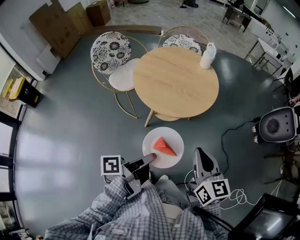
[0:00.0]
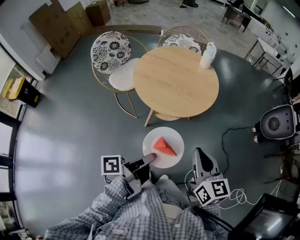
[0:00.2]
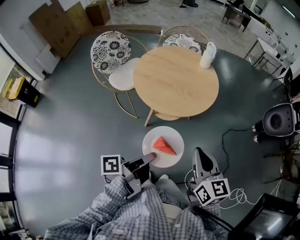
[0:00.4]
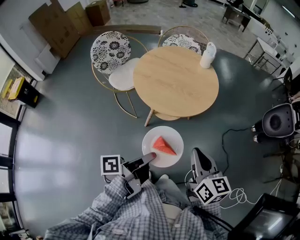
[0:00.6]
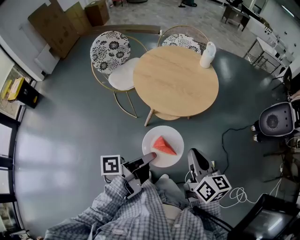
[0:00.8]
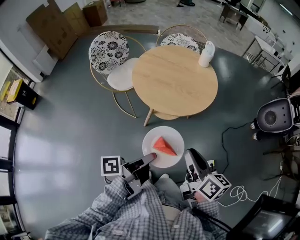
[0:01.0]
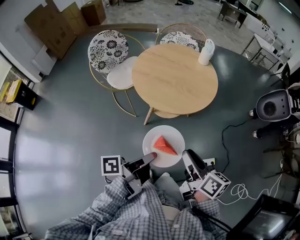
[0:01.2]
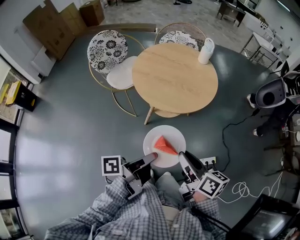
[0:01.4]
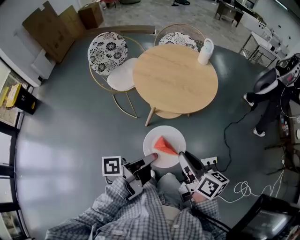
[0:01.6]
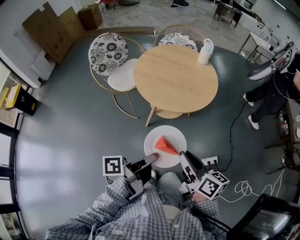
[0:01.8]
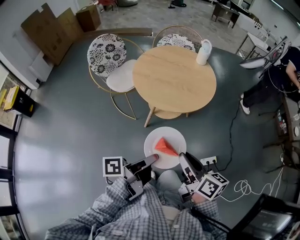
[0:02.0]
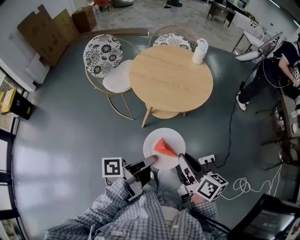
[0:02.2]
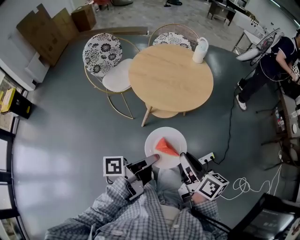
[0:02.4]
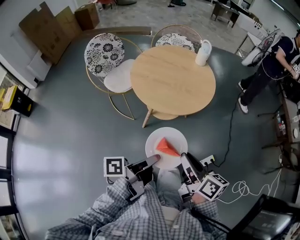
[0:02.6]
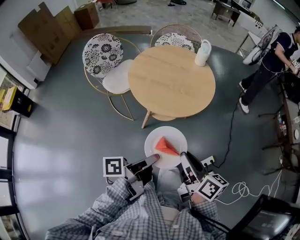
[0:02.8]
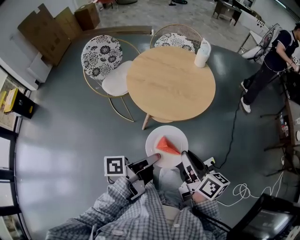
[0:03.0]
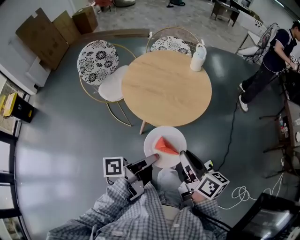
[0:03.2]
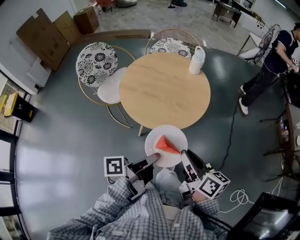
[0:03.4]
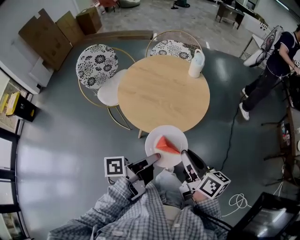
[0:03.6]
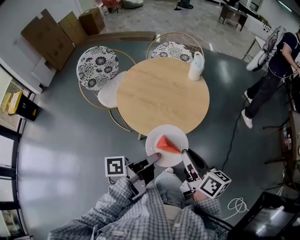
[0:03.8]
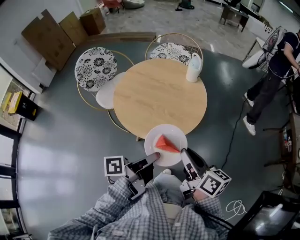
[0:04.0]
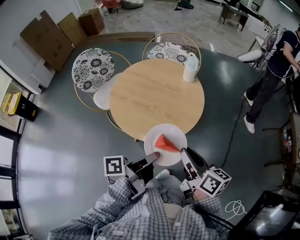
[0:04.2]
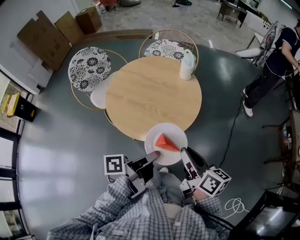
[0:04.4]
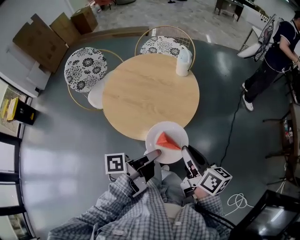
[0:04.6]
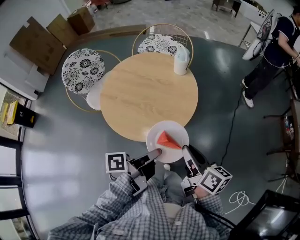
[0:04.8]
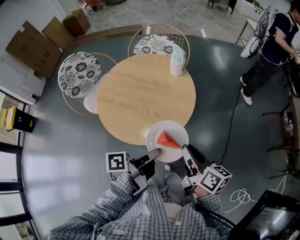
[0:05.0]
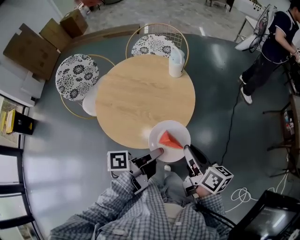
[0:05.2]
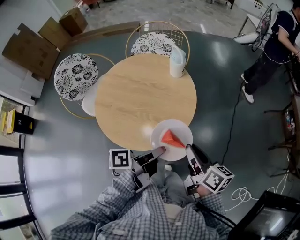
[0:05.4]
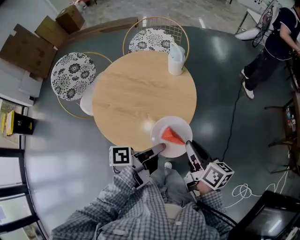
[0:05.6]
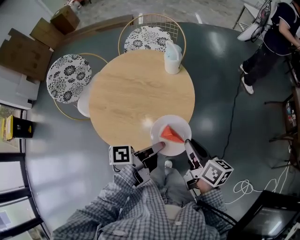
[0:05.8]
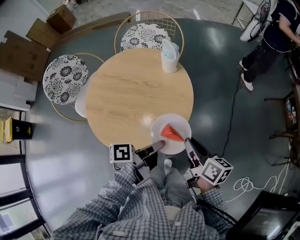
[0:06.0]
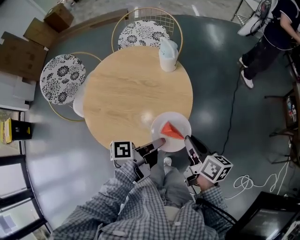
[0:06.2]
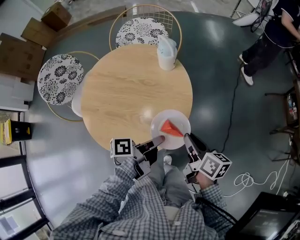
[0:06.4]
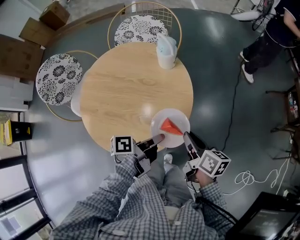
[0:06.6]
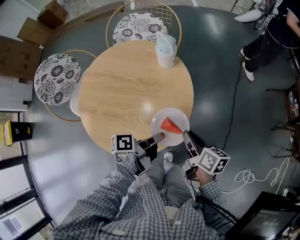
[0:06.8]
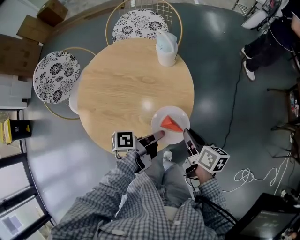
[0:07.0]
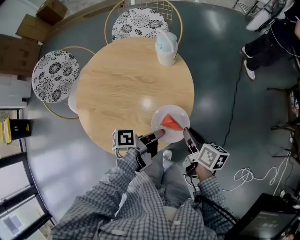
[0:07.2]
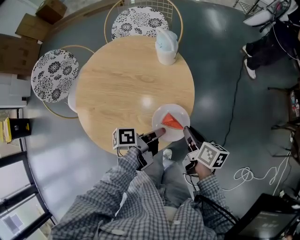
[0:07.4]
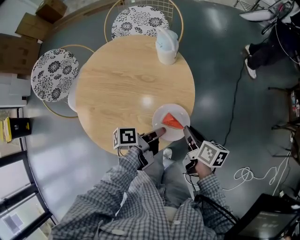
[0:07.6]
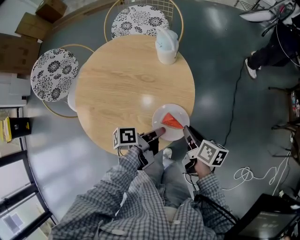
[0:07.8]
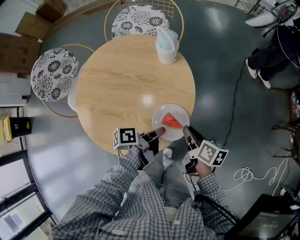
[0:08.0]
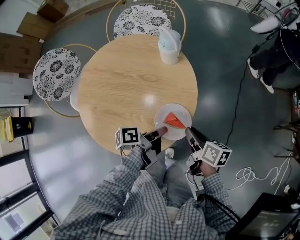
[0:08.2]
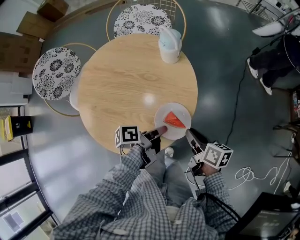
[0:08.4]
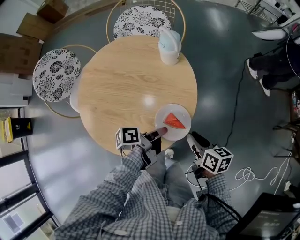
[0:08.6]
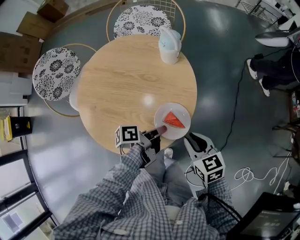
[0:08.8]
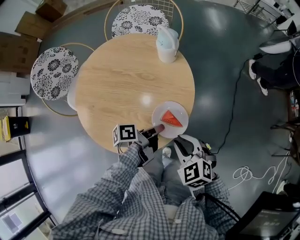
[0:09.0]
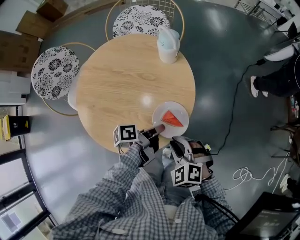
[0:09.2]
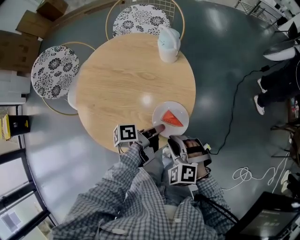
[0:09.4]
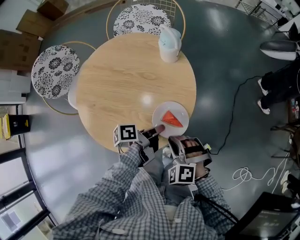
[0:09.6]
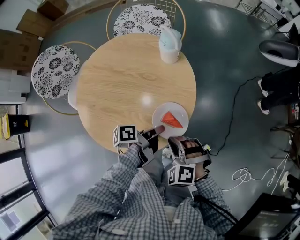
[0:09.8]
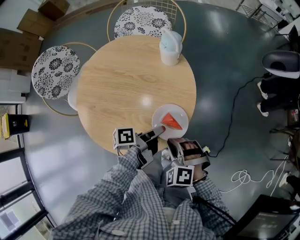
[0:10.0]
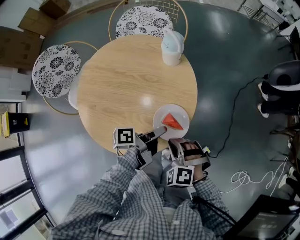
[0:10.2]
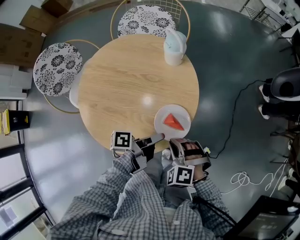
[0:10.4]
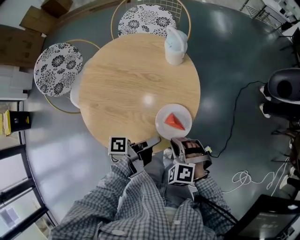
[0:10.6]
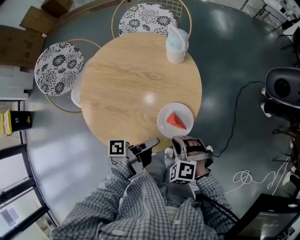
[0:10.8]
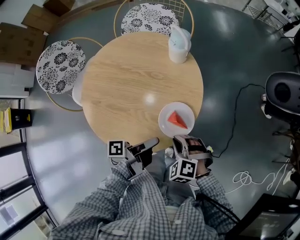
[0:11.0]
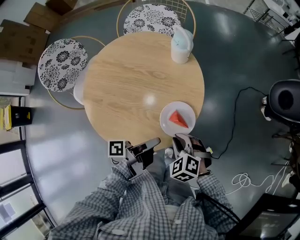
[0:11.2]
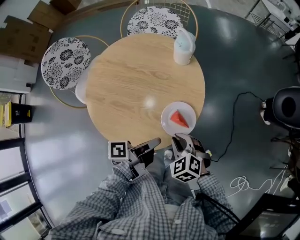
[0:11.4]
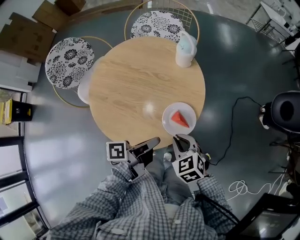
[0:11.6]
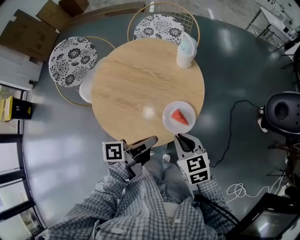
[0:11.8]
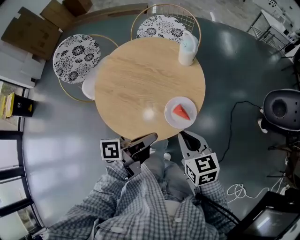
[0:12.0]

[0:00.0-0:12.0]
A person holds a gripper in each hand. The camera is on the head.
0:00.0 to 0:01.6: The right gripper ends up some 10 cm from where it was, and rotates about 40 degrees.
0:01.6 to 0:03.0: The right gripper shifts by about 5 cm.
0:03.0 to 0:04.4: The right gripper ends up some 20 cm from where it was.
0:04.4 to 0:06.0: The right gripper ends up about 15 cm from where it was.
0:06.0 to 0:07.6: The right gripper moves downward, some 10 cm.
0:07.6 to 0:09.0: The right gripper ends up roughly 10 cm from where it was, and rotates around the line of its fingers by about 80 degrees, counterclockwise from behind.
0:09.0 to 0:10.4: The right gripper swivels approximately 30 degrees.
0:10.4 to 0:12.0: The right gripper is displaced upward by approximately 10 cm, and rotates around the line of its fingers by some 60 degrees, clockwise from behind.

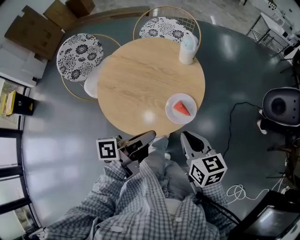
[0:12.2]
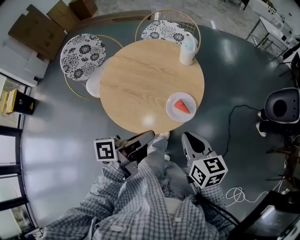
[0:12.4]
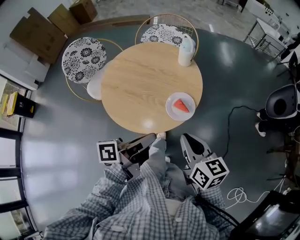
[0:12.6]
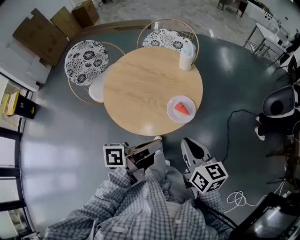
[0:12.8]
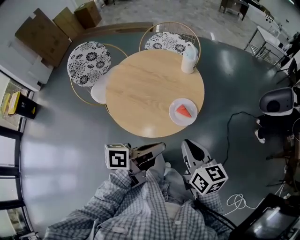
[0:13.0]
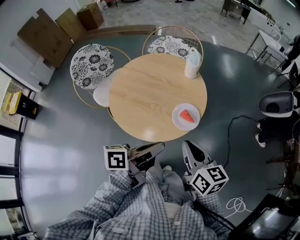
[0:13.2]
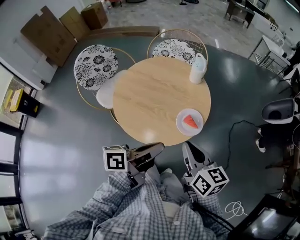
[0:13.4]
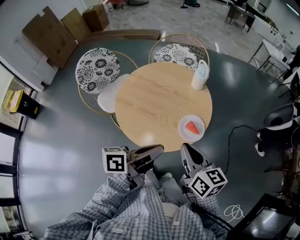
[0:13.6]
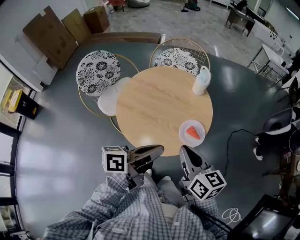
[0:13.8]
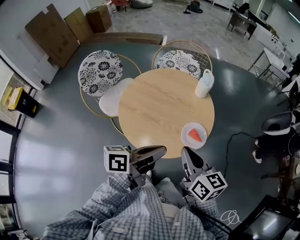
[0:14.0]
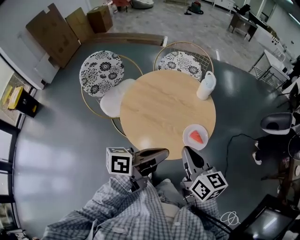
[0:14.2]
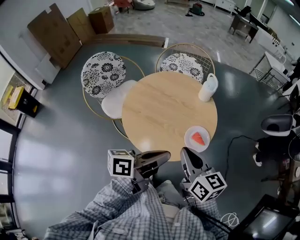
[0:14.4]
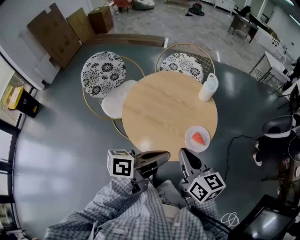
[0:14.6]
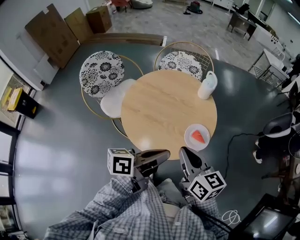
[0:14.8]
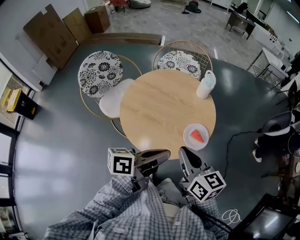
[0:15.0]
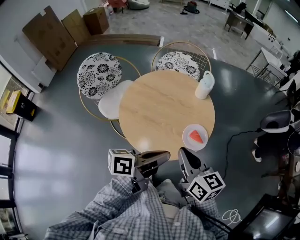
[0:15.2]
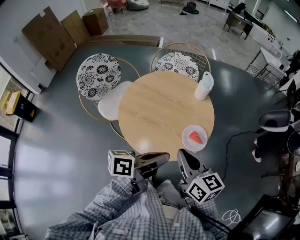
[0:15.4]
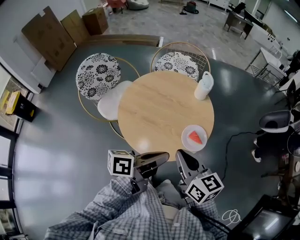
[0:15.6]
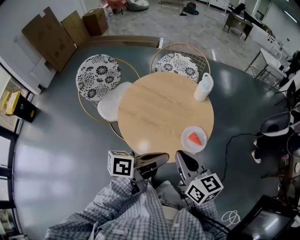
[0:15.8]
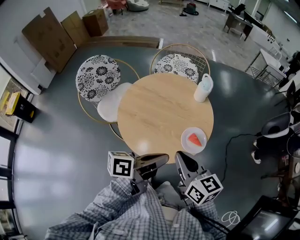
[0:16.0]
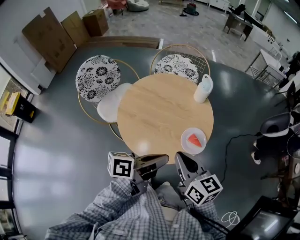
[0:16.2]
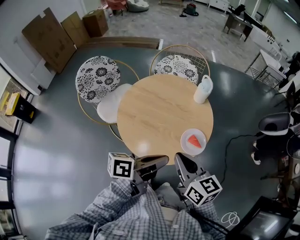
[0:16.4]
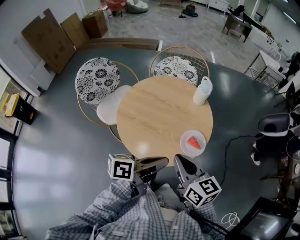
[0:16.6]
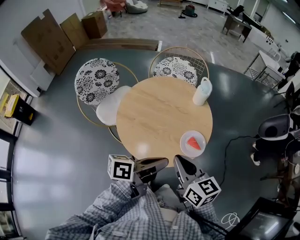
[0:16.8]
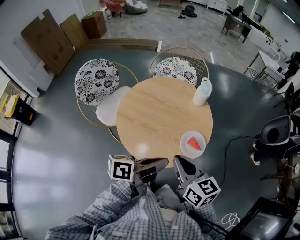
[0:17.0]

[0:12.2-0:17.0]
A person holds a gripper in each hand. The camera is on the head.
0:12.2 to 0:13.8: The right gripper shifts approximately 10 cm upward.

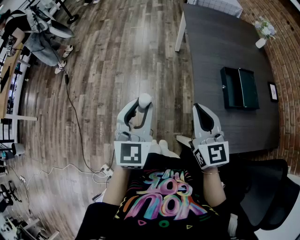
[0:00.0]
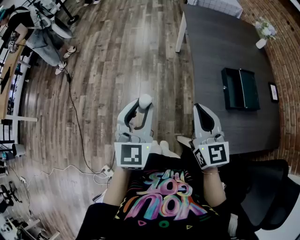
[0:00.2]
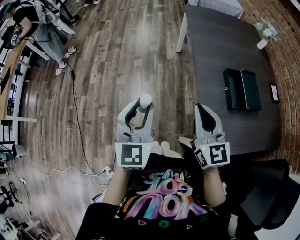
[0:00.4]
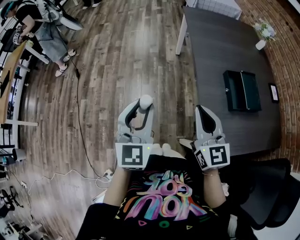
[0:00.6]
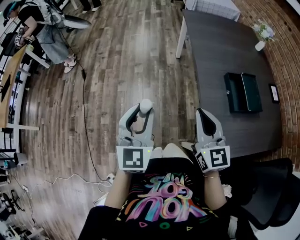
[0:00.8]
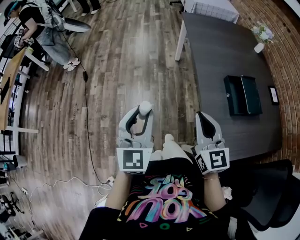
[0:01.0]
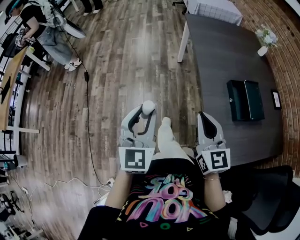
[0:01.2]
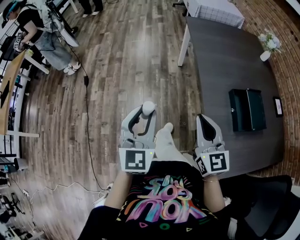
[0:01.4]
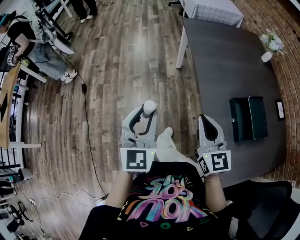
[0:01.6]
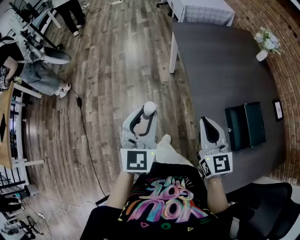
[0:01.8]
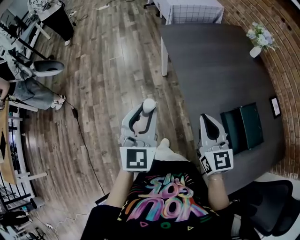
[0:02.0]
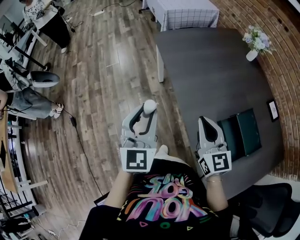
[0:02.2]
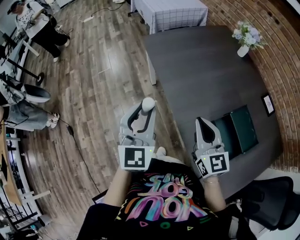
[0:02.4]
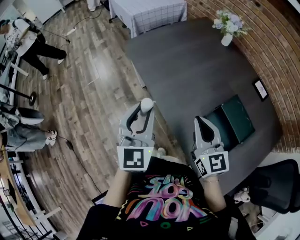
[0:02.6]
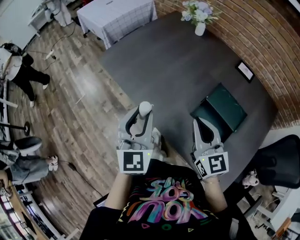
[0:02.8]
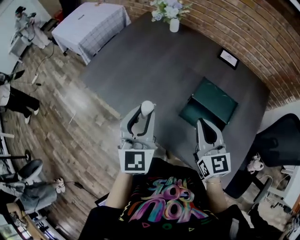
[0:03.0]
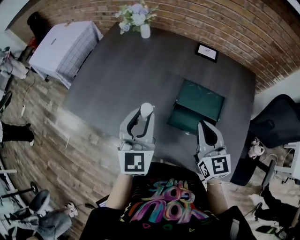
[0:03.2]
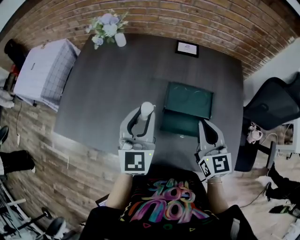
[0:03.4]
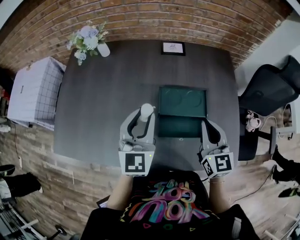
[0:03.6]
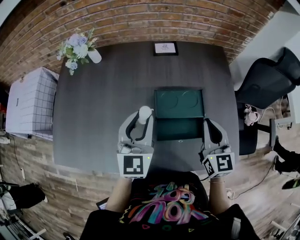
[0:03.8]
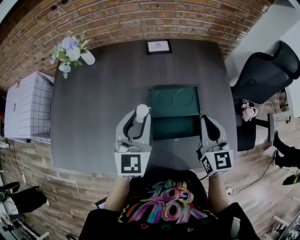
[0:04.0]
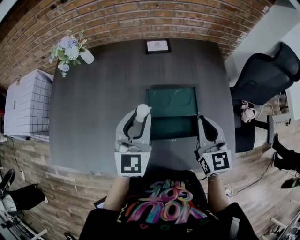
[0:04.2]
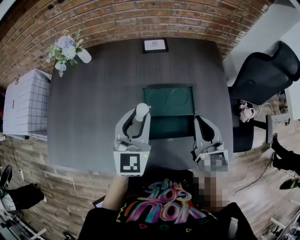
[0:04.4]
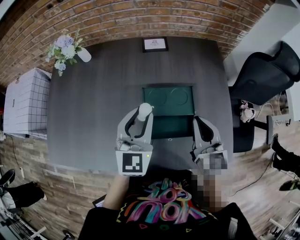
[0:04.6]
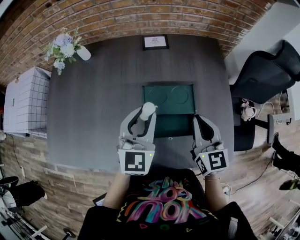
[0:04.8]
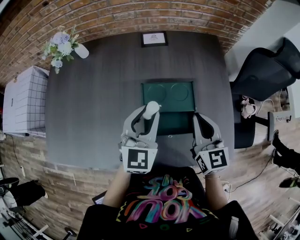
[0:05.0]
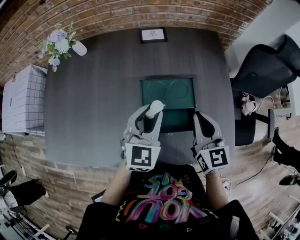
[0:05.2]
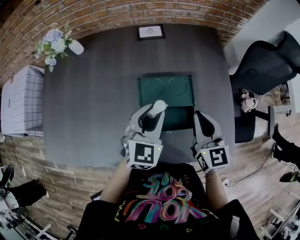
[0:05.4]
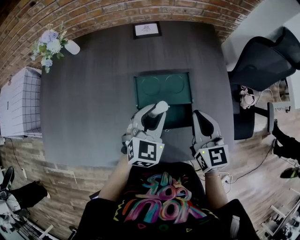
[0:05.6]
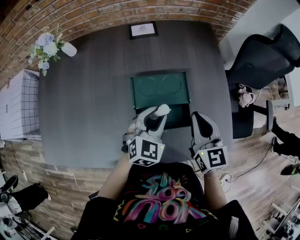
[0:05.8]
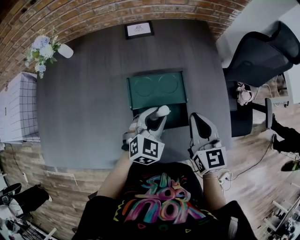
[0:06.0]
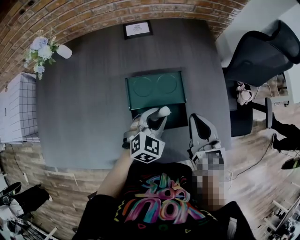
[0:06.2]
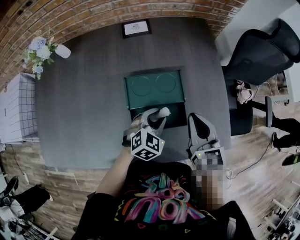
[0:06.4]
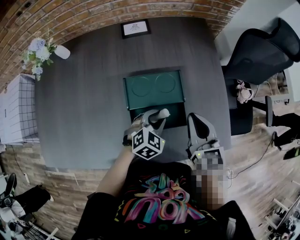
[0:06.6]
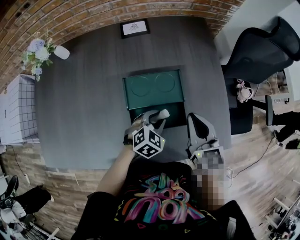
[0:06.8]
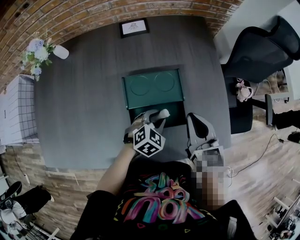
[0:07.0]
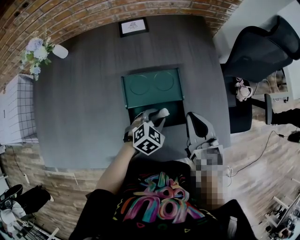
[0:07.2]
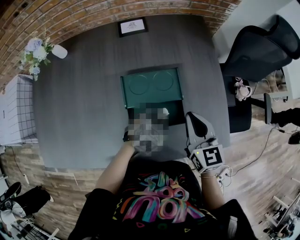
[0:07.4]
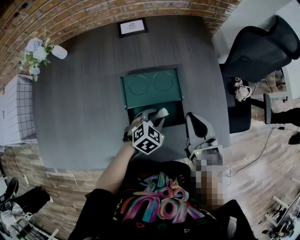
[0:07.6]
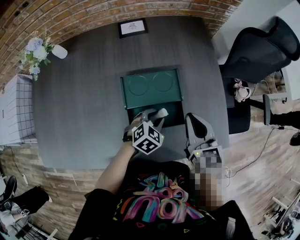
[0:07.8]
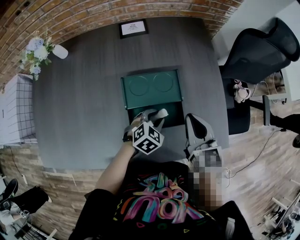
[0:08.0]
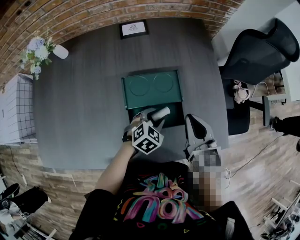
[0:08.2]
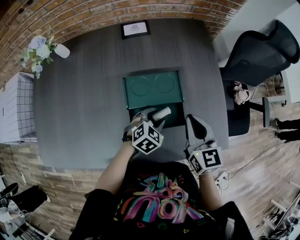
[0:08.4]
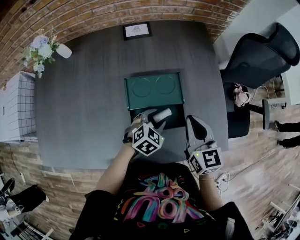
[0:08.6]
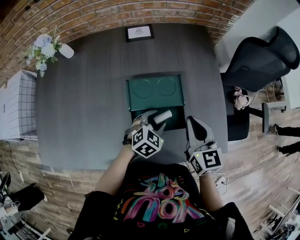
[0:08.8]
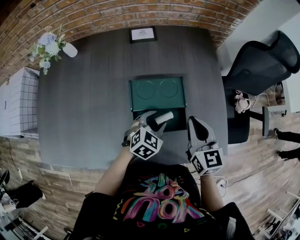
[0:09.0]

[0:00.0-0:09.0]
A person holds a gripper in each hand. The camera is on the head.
0:00.0 to 0:01.6: Both grippers travel together forward, some 20 cm.
0:01.6 to 0:03.0: The right gripper ends up approximately 25 cm from where it was, and rotates approximately 50 degrees. Meanwhile the left gripper moves some 40 cm, and changes its angle by about 50 degrees.
0:03.0 to 0:04.4: The right gripper changes place by about 15 cm, and rotates some 40 degrees. Meanwhile the left gripper ends up some 25 cm from where it was, and turns by roughly 40 degrees.
0:04.4 to 0:06.0: The right gripper moves about 5 cm. The left gripper heads downward and to the right, covering approximately 20 cm, and swivels about 30 degrees.
0:06.0 to 0:07.6: The left gripper is displaced downward by some 10 cm, and turns by some 20 degrees.
0:07.6 to 0:09.0: There are only small adjustments of the grippers.
